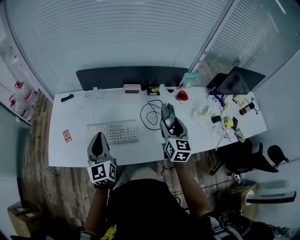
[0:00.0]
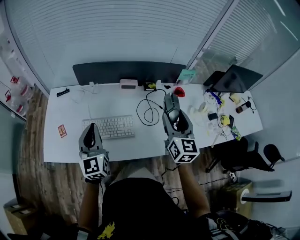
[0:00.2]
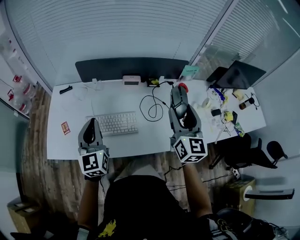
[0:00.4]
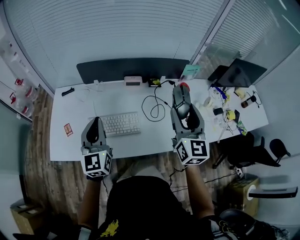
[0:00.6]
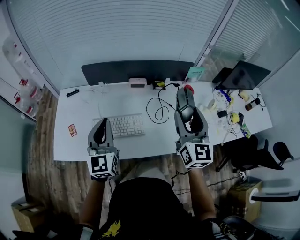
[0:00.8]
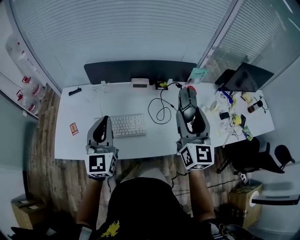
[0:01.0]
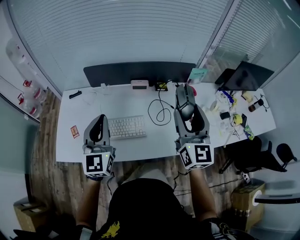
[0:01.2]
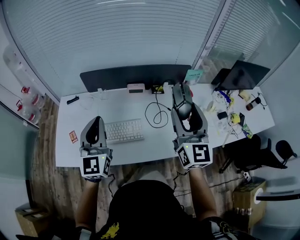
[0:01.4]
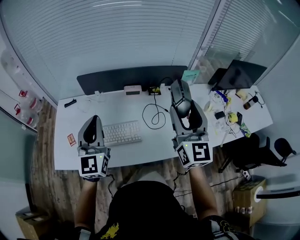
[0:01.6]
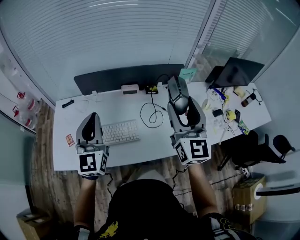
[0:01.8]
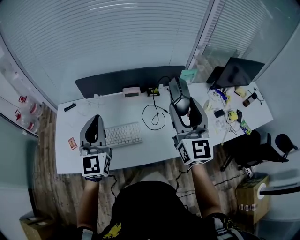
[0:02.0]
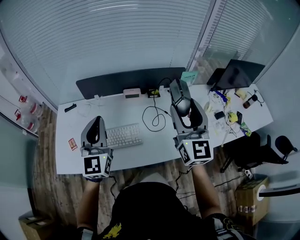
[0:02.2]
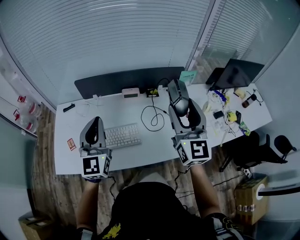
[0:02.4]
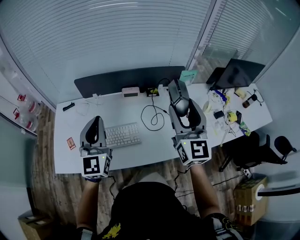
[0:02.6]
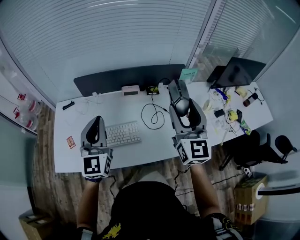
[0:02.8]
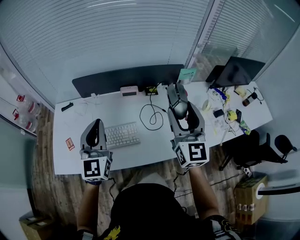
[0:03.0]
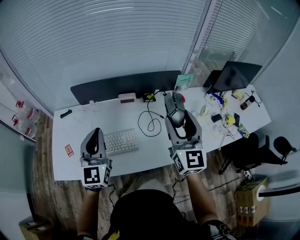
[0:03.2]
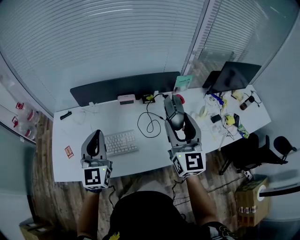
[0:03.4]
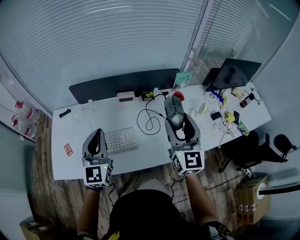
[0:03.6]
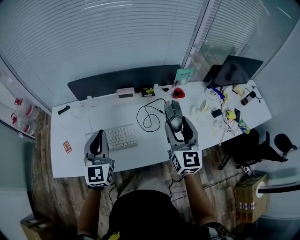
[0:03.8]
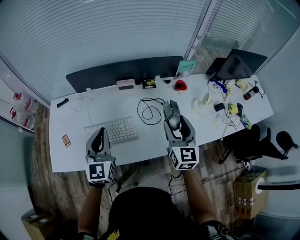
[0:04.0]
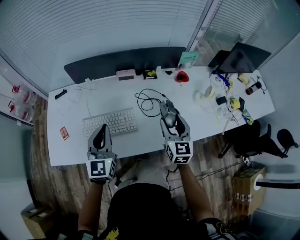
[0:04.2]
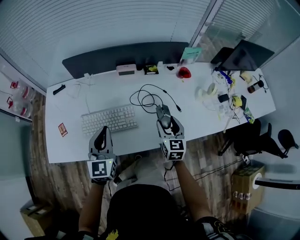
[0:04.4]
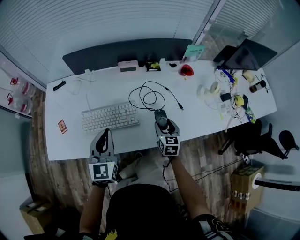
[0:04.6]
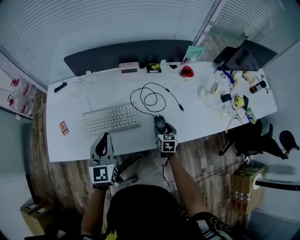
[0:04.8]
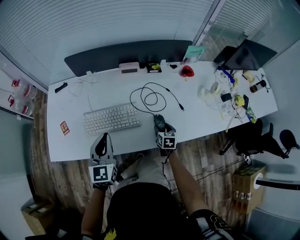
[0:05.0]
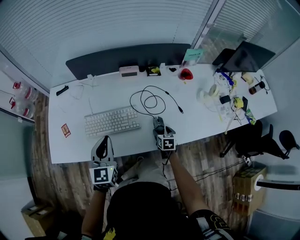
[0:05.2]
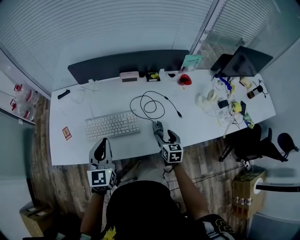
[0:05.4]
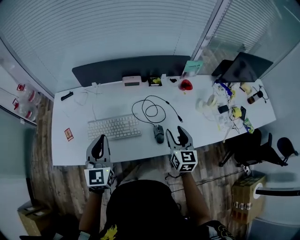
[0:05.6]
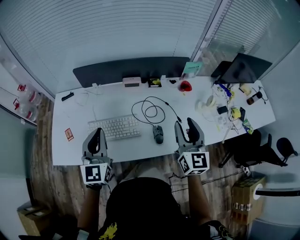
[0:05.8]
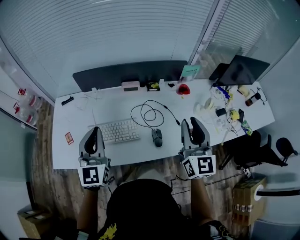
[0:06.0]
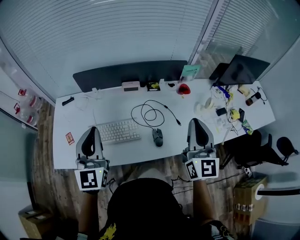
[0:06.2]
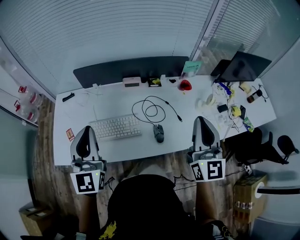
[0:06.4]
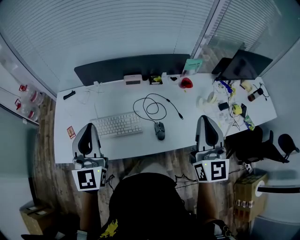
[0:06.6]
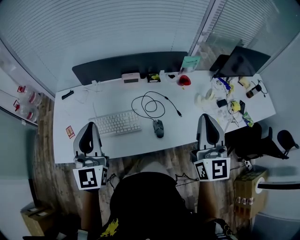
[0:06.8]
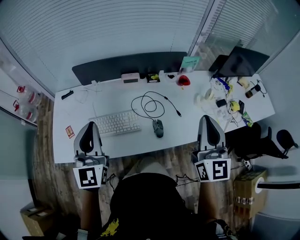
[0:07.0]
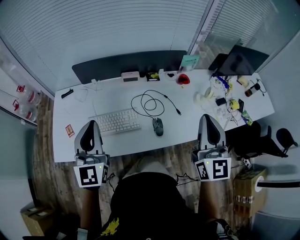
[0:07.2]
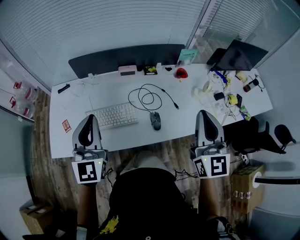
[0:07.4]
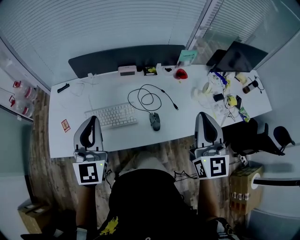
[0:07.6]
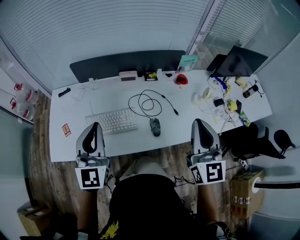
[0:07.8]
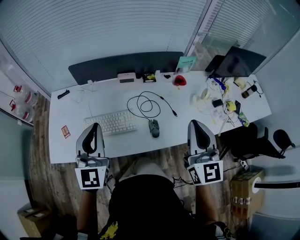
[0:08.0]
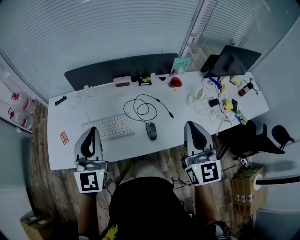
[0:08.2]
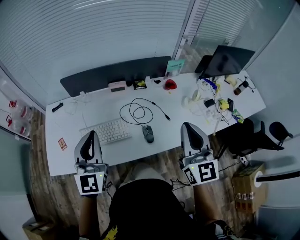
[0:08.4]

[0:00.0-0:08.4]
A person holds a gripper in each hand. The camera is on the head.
0:00.0 to 0:01.4: The right gripper heads upward, covering roughly 15 cm, and changes its angle by approximately 20 degrees. Meanwhile the left gripper shifts some 10 cm upward.
0:01.4 to 0:02.8: There are only small adjustments of the grippers.
0:02.8 to 0:04.2: The right gripper is displaced downward by approximately 20 cm, and turns by roughly 20 degrees. Meanwhile the left gripper shifts some 15 cm downward.
0:04.2 to 0:05.6: The right gripper reaches approximately 25 cm downward, then returns.
0:05.6 to 0:07.0: The left gripper is displaced upward by about 10 cm, while the right gripper moves upward, approximately 25 cm, turns by roughly 30 degrees, and closes up.
0:07.0 to 0:08.4: The grippers make only small movements.

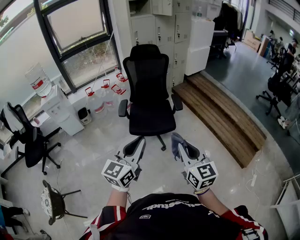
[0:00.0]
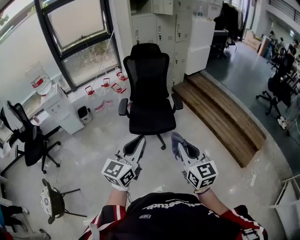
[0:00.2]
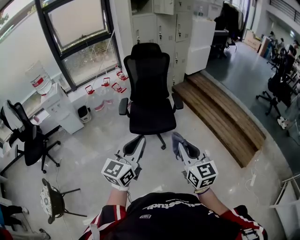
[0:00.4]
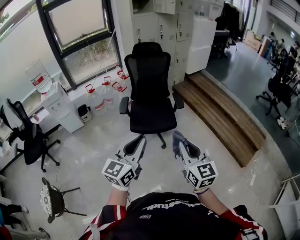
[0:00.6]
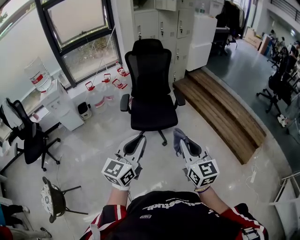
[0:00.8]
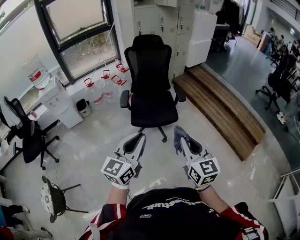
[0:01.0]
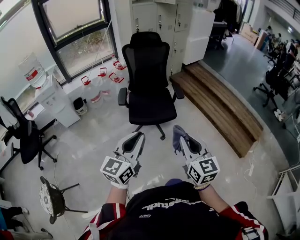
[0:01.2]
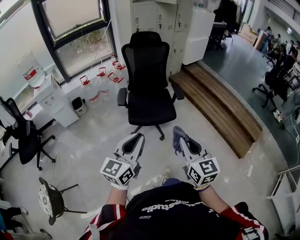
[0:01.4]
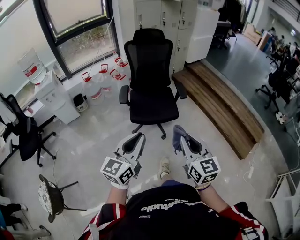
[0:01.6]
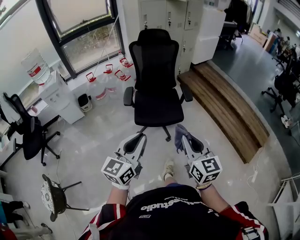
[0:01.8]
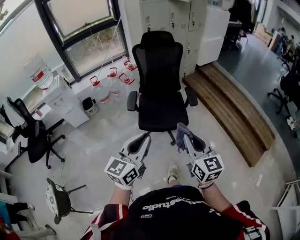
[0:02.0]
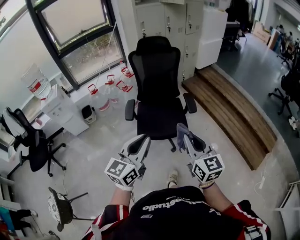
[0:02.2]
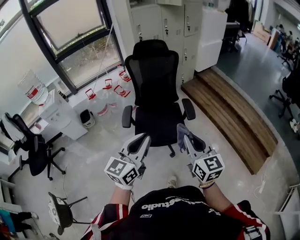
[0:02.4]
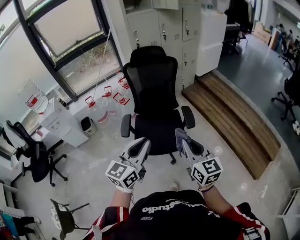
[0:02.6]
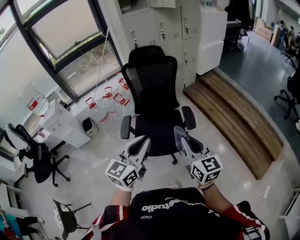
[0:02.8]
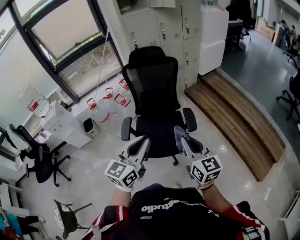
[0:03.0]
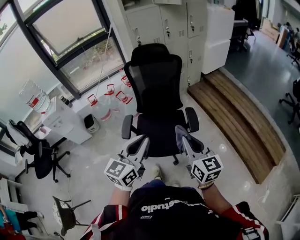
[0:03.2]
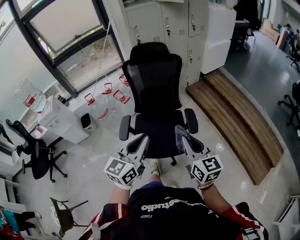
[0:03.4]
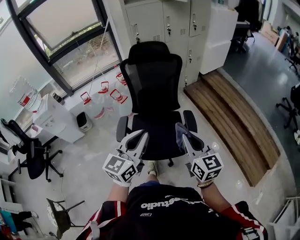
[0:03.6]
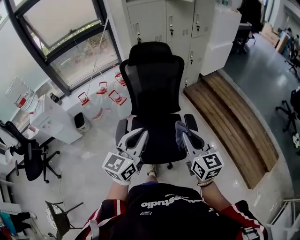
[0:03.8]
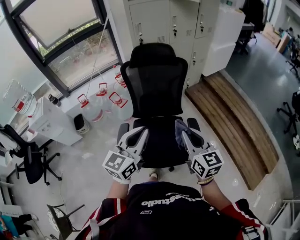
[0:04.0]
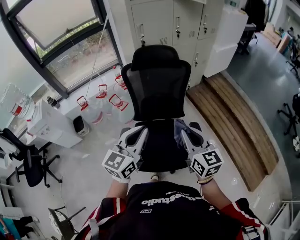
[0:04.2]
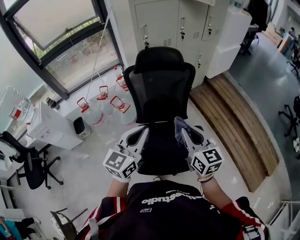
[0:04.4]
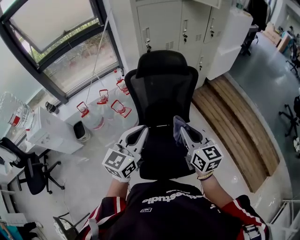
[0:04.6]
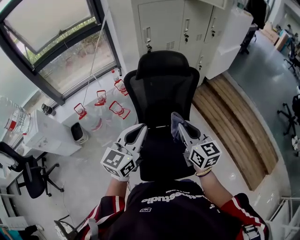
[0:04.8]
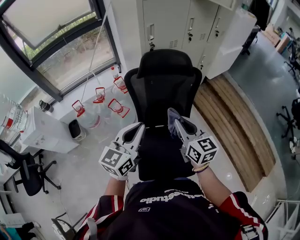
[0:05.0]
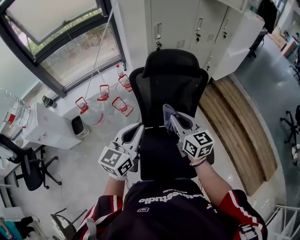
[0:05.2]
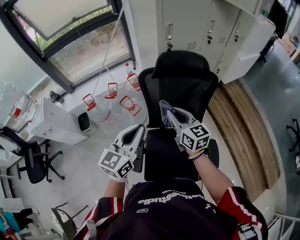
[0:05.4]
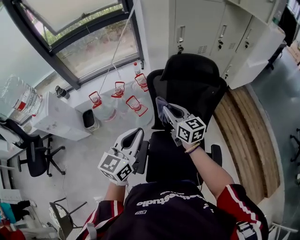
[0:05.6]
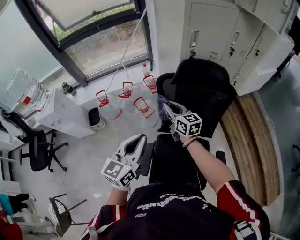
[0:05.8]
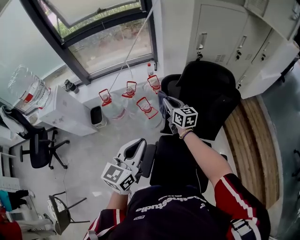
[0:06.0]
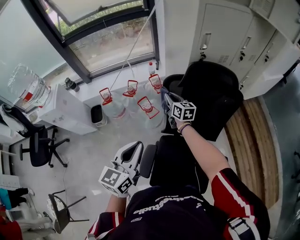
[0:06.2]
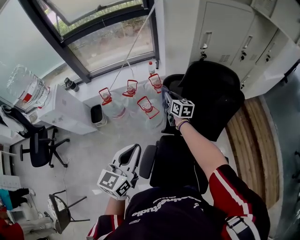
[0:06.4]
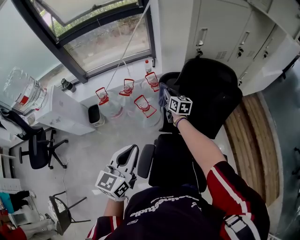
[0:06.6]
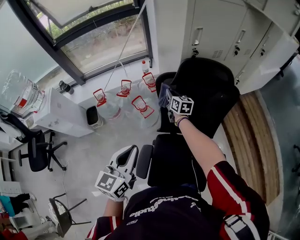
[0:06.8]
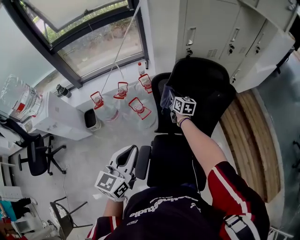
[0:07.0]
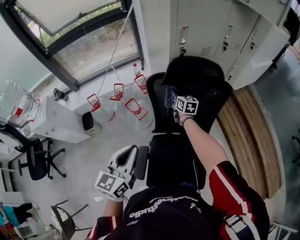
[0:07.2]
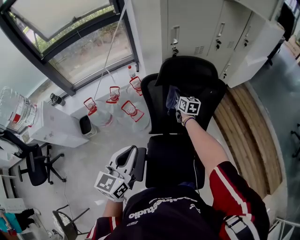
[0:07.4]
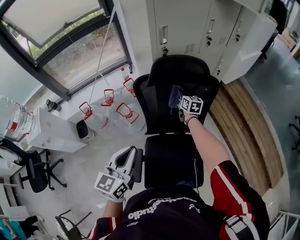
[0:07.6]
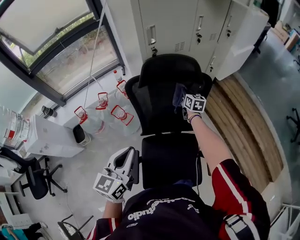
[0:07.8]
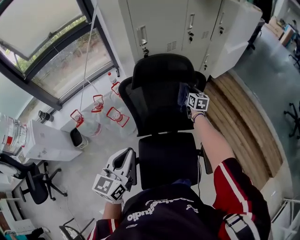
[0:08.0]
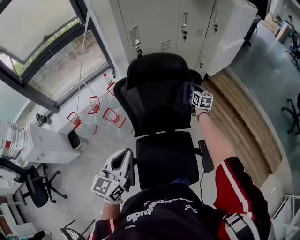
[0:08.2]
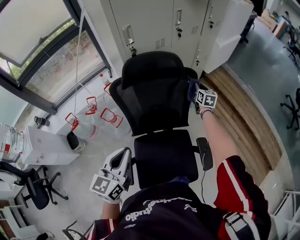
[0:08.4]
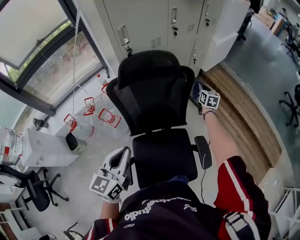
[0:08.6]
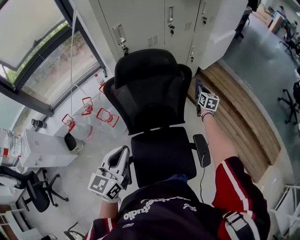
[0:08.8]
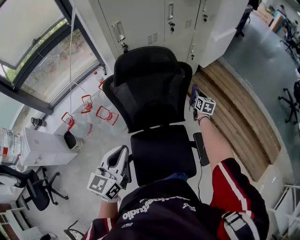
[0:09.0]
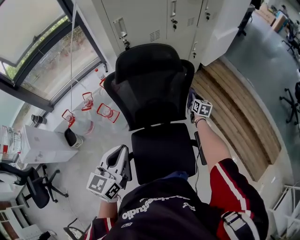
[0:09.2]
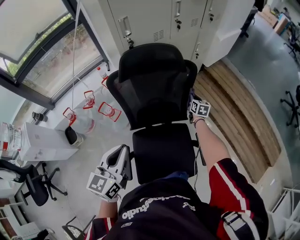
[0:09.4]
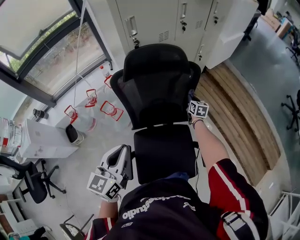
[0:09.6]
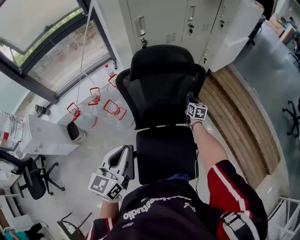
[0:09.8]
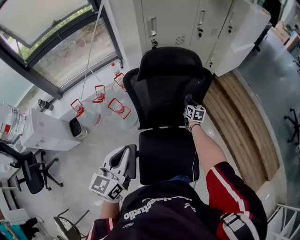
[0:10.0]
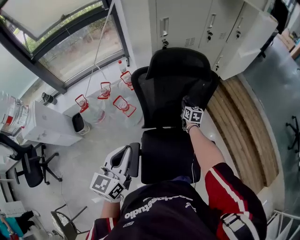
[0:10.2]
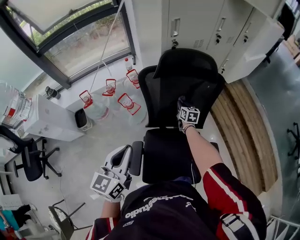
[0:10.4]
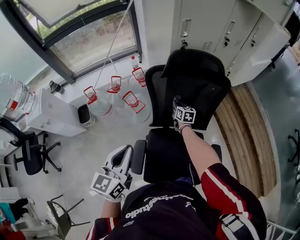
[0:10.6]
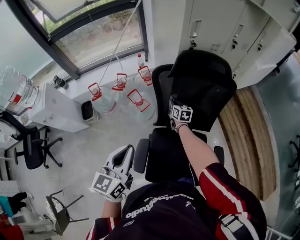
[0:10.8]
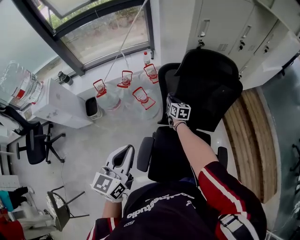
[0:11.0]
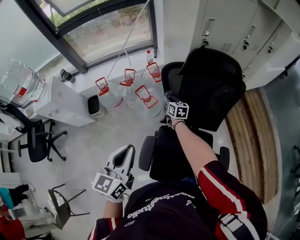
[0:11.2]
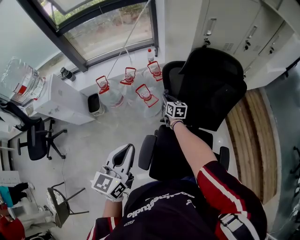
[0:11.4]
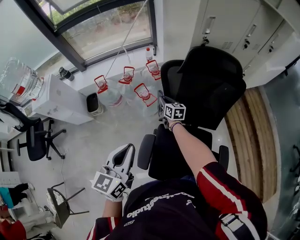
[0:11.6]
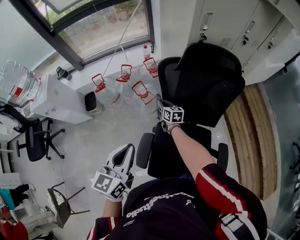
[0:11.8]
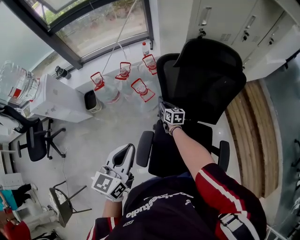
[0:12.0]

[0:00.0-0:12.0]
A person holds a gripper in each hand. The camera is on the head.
0:00.0 to 0:01.6: The left gripper heads to the left and downward, covering approximately 10 cm, while the right gripper is displaced to the left by roughly 5 cm.
0:01.6 to 0:03.0: Both grippers travel together forward, roughly 35 cm.
0:03.0 to 0:04.4: The two grippers go roughly 35 cm forward and to the left.
0:04.4 to 0:06.0: The right gripper moves forward and to the left, approximately 50 cm, and rotates about 20 degrees; the left gripper travels to the left and forward by about 25 cm, and changes its angle by about 20 degrees.
0:06.0 to 0:07.6: The right gripper moves to the right, roughly 25 cm, and swivels some 30 degrees, while the left gripper goes roughly 5 cm to the right.
0:07.6 to 0:09.0: The right gripper moves to the right, some 30 cm, and swivels approximately 20 degrees. Meanwhile the left gripper is displaced to the right by roughly 10 cm.
0:09.0 to 0:10.4: The right gripper moves to the left, some 30 cm, and changes its angle by roughly 20 degrees; the left gripper shifts about 10 cm to the left and backward.
0:10.4 to 0:12.0: The right gripper moves to the left, roughly 20 cm, and swivels approximately 20 degrees; the left gripper moves approximately 5 cm.

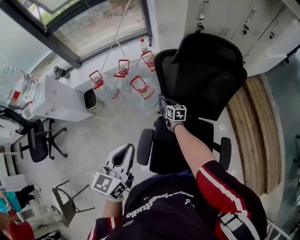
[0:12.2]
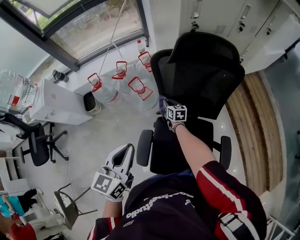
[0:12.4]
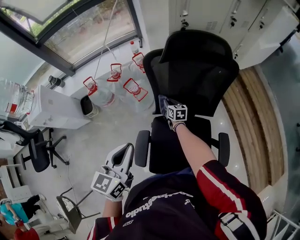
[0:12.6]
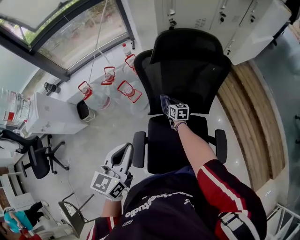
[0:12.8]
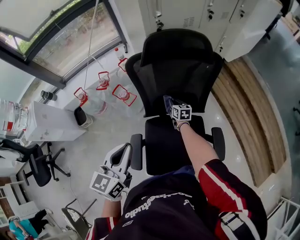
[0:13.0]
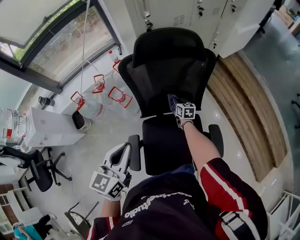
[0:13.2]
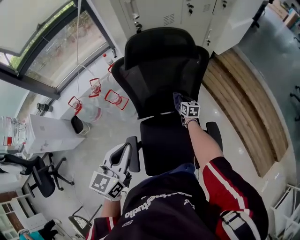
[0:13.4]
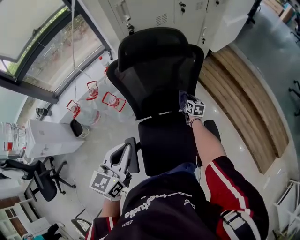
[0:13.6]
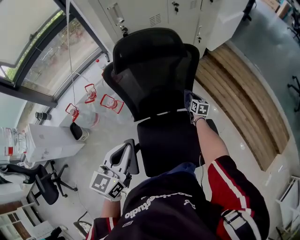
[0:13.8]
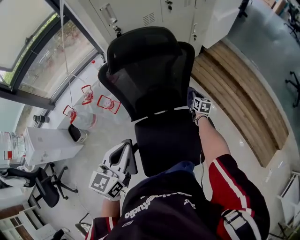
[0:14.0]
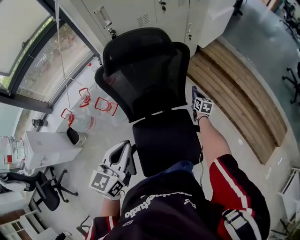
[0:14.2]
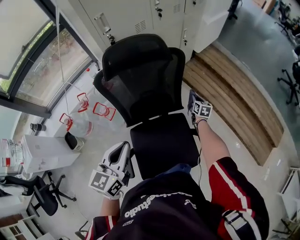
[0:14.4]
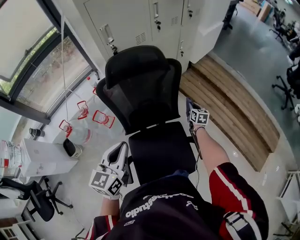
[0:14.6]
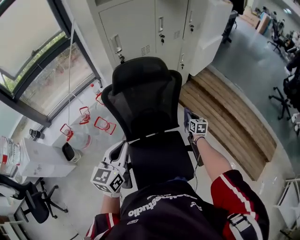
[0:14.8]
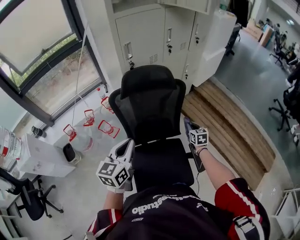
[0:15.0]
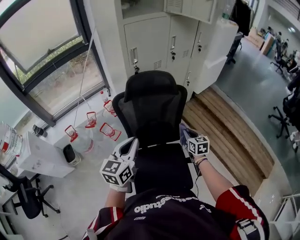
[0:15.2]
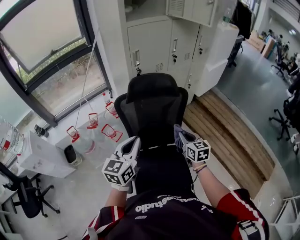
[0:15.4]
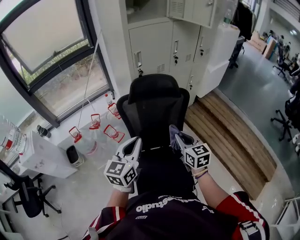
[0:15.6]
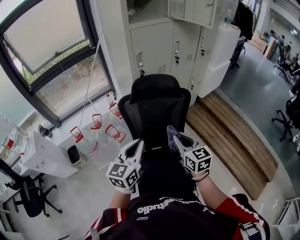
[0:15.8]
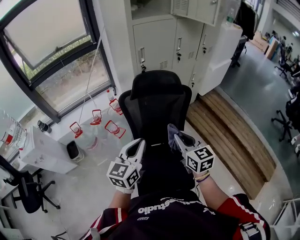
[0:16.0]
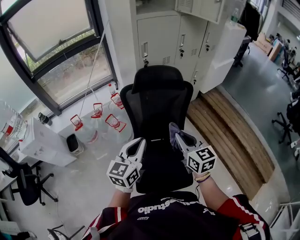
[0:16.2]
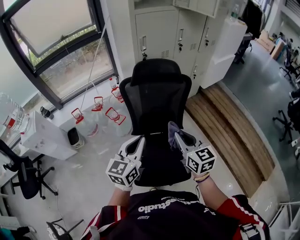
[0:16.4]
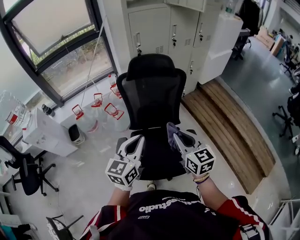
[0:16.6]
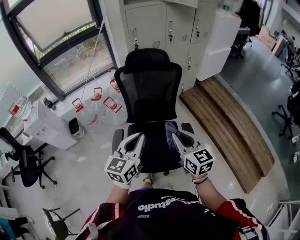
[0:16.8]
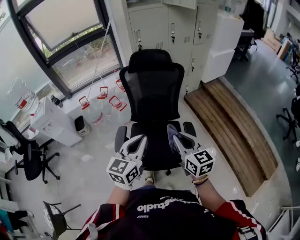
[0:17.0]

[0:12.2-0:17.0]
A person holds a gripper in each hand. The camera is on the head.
0:12.2 to 0:13.8: The left gripper shifts by roughly 15 cm, and swivels about 20 degrees. The right gripper shifts by about 40 cm, and rotates some 30 degrees.
0:13.8 to 0:15.4: The right gripper is displaced upward and backward by about 40 cm, and turns by about 20 degrees, while the left gripper shifts roughly 10 cm upward.
0:15.4 to 0:17.0: The right gripper travels backward by roughly 30 cm. The left gripper moves backward and to the right, approximately 30 cm.
